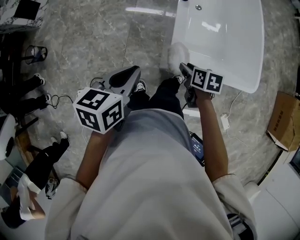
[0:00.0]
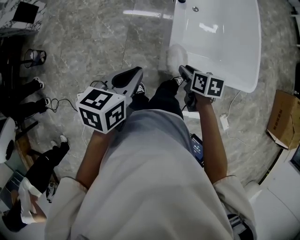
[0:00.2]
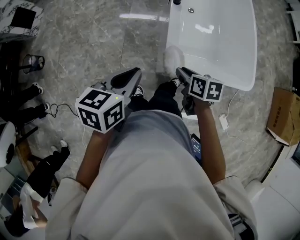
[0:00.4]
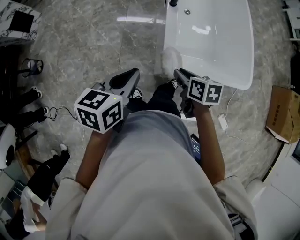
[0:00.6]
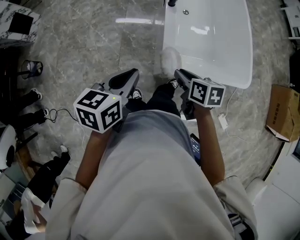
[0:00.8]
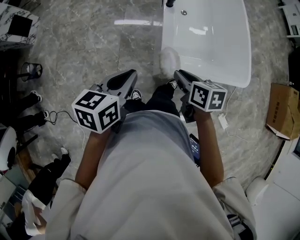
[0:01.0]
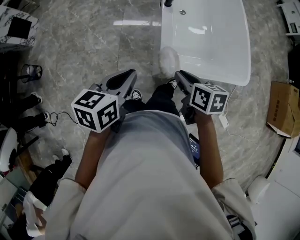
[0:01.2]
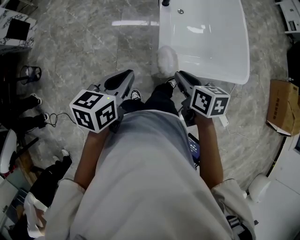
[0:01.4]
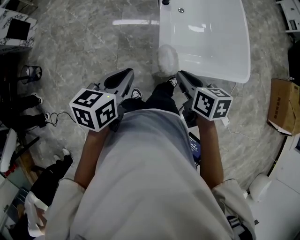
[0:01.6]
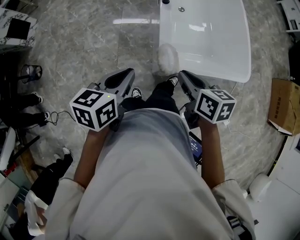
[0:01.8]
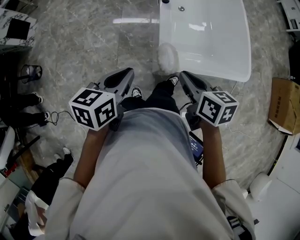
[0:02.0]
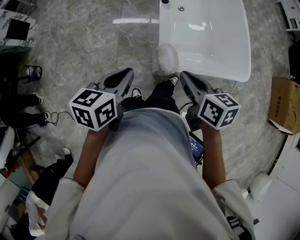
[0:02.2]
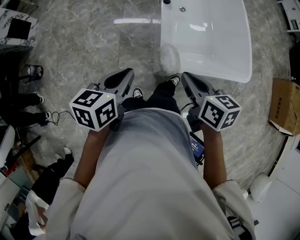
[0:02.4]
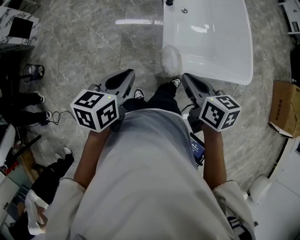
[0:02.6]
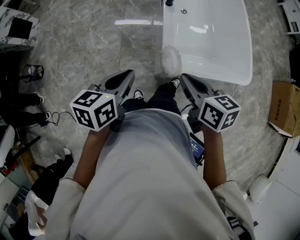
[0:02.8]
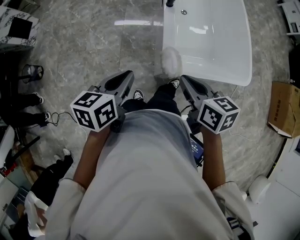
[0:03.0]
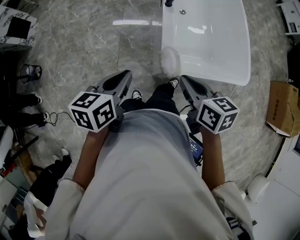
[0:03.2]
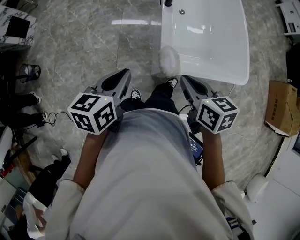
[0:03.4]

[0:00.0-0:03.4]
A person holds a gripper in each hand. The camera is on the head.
0:00.0 to 0:01.6: The right gripper moves upward, some 15 cm, and closes its fingers.
0:01.6 to 0:03.4: The grippers move only a little.

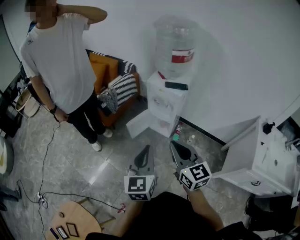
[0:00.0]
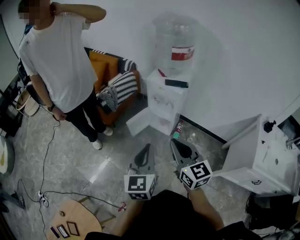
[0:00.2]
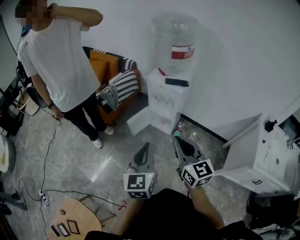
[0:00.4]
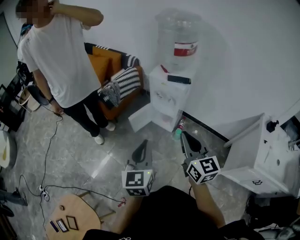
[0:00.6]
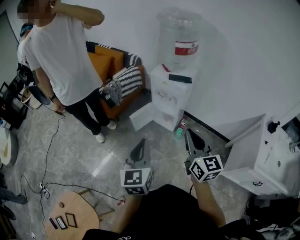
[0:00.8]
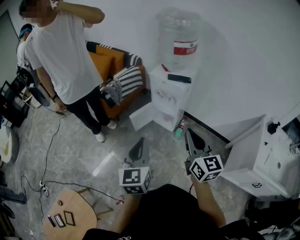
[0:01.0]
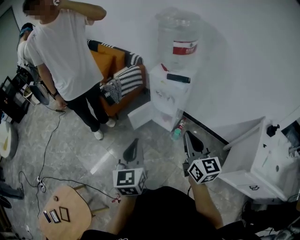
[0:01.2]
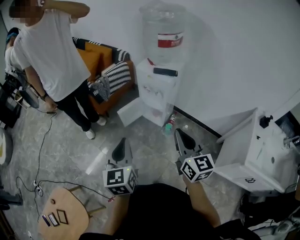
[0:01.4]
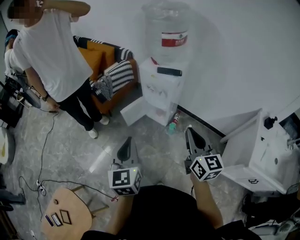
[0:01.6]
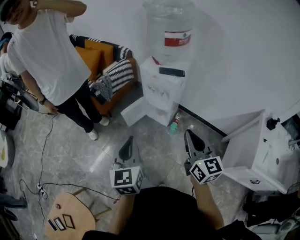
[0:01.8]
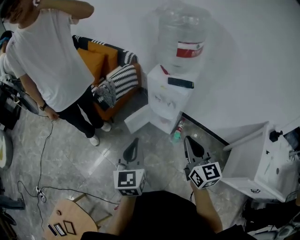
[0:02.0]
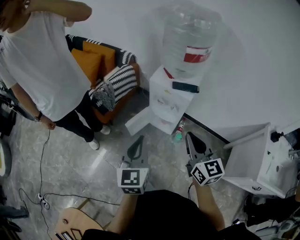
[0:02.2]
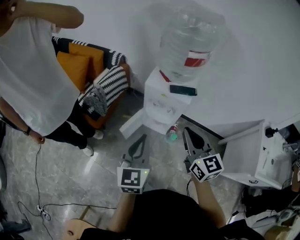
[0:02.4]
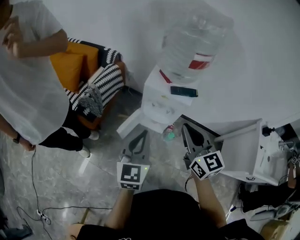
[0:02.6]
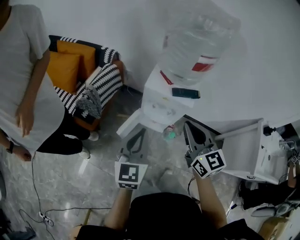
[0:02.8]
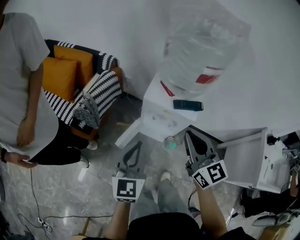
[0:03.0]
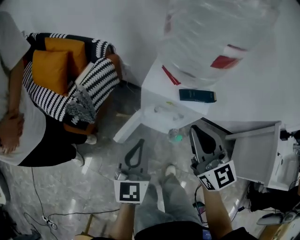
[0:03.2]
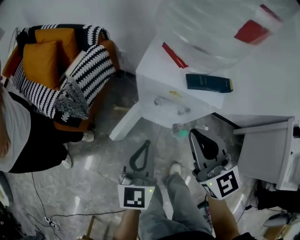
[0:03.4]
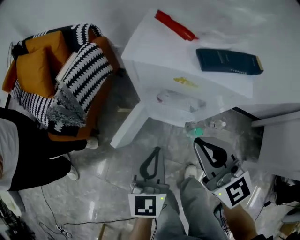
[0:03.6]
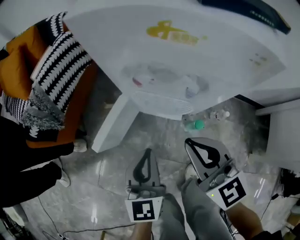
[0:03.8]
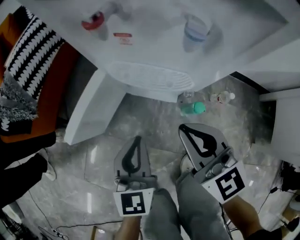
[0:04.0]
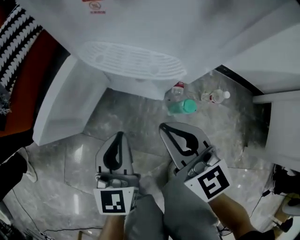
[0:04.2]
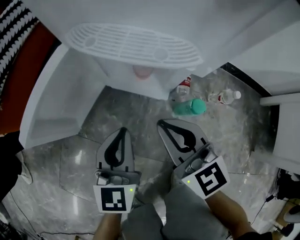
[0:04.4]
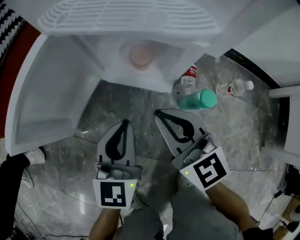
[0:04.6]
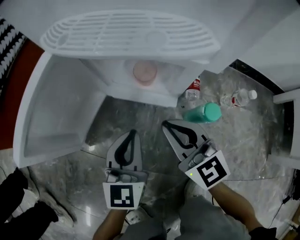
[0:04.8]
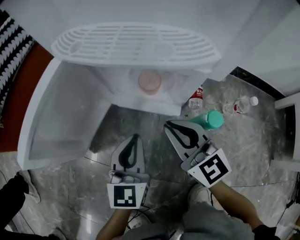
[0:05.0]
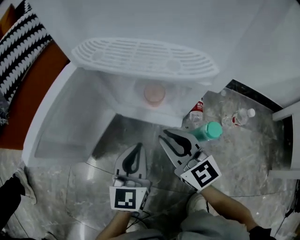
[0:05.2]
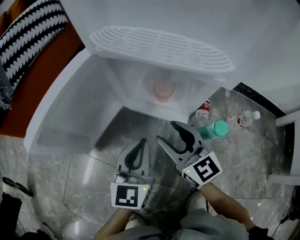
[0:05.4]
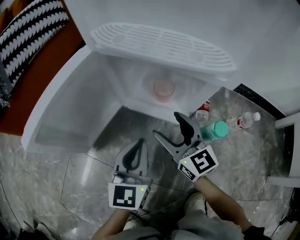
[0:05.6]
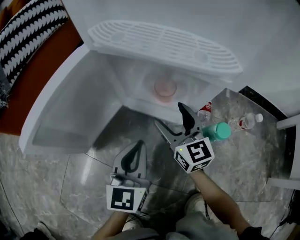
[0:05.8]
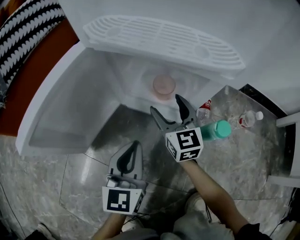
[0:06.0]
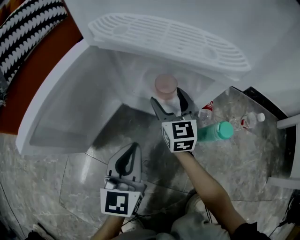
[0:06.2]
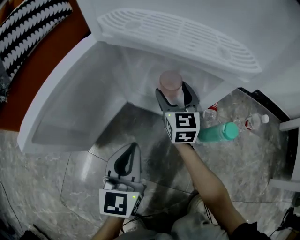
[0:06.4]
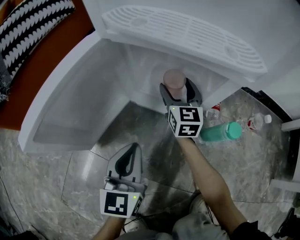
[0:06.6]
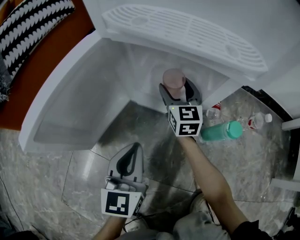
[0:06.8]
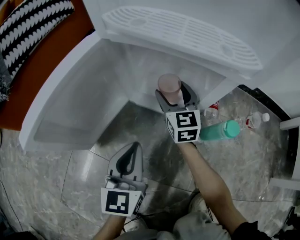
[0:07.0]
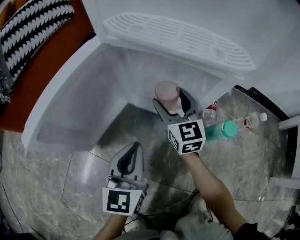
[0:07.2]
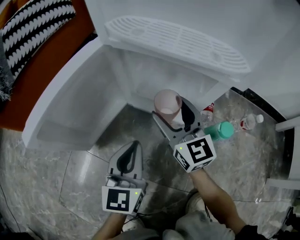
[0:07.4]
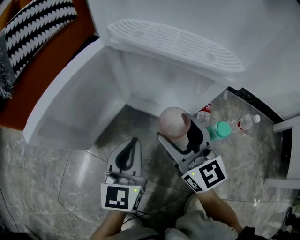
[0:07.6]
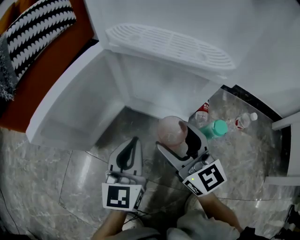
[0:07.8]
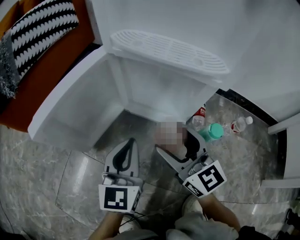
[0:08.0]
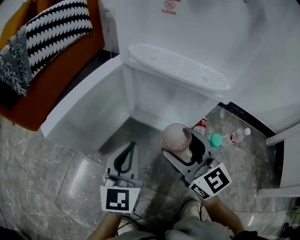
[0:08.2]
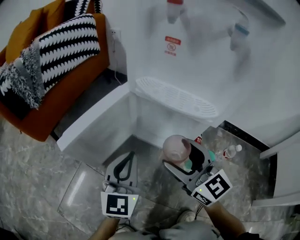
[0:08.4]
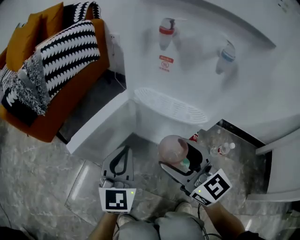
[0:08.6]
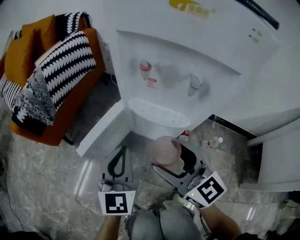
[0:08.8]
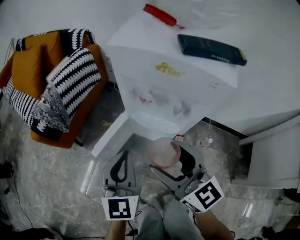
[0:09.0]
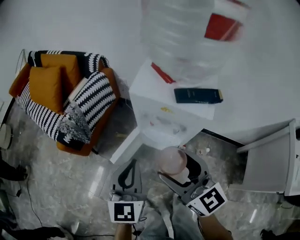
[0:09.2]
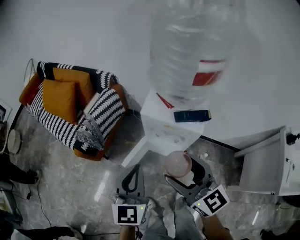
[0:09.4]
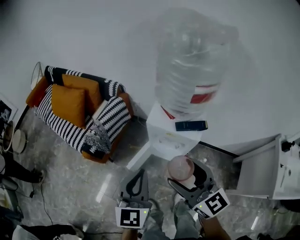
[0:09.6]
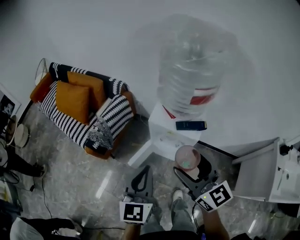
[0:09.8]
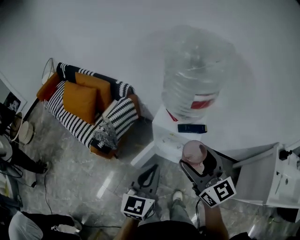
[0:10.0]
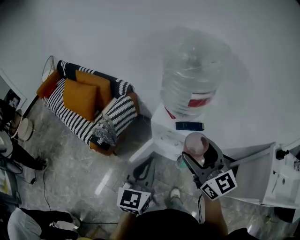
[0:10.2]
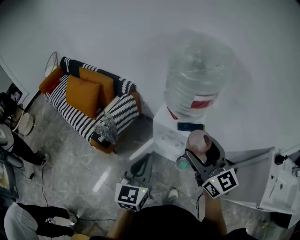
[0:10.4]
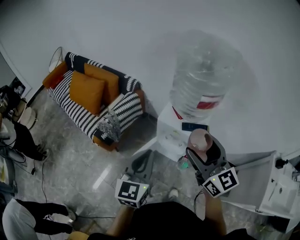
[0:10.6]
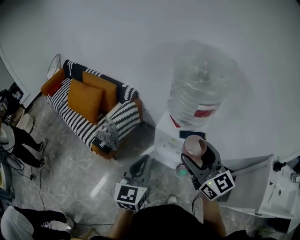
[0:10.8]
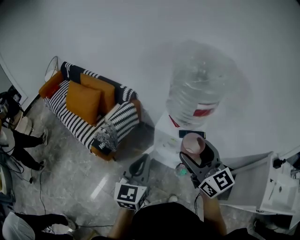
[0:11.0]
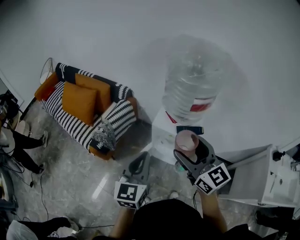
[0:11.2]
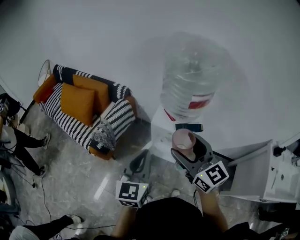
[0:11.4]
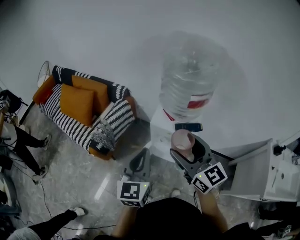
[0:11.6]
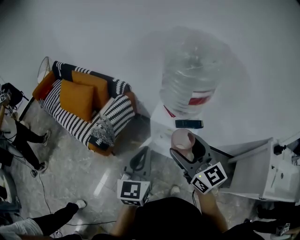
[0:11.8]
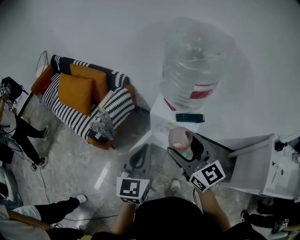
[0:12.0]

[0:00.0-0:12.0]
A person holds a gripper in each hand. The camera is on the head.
0:00.0 to 0:01.6: The right gripper shifts approximately 15 cm to the right.
0:01.6 to 0:03.0: The left gripper travels forward by some 35 cm, and changes its angle by about 30 degrees, while the right gripper travels forward and to the left by some 35 cm.
0:03.0 to 0:04.4: The grippers both shift downward by approximately 70 cm.
0:04.4 to 0:06.0: The left gripper is displaced downward by some 10 cm; the right gripper moves downward and forward, some 25 cm, and opens its fingers.
0:06.0 to 0:07.6: The right gripper travels backward and upward by approximately 15 cm.
0:07.6 to 0:09.0: Both grippers travel together upward, approximately 40 cm.
0:09.0 to 0:10.4: The two grippers go approximately 40 cm upward.
0:10.4 to 0:12.0: The right gripper travels to the left by some 5 cm.

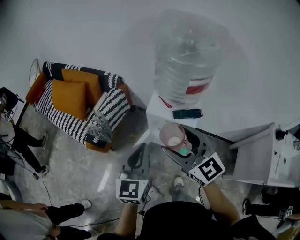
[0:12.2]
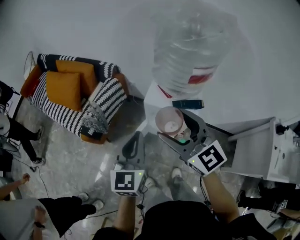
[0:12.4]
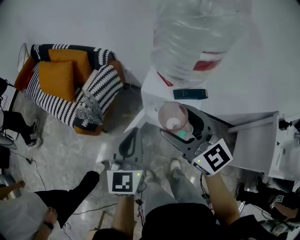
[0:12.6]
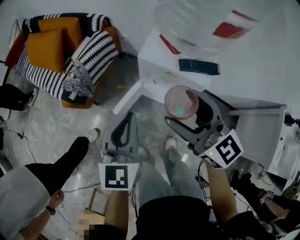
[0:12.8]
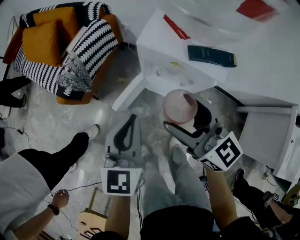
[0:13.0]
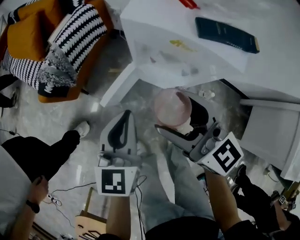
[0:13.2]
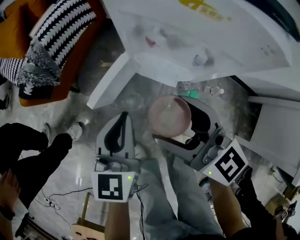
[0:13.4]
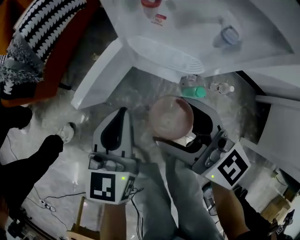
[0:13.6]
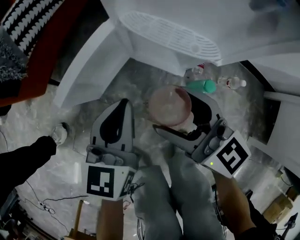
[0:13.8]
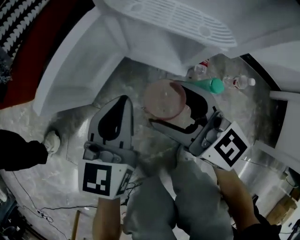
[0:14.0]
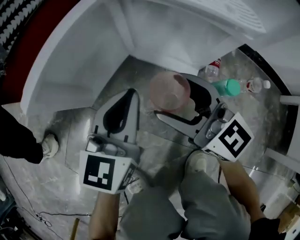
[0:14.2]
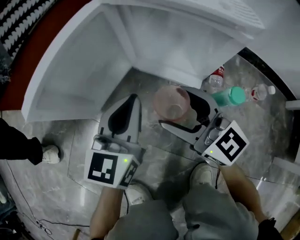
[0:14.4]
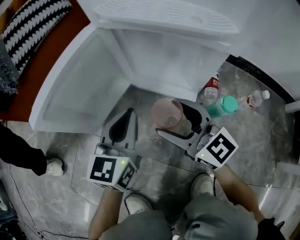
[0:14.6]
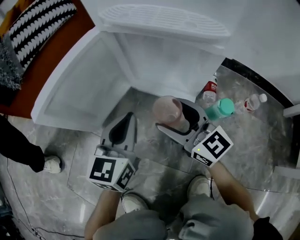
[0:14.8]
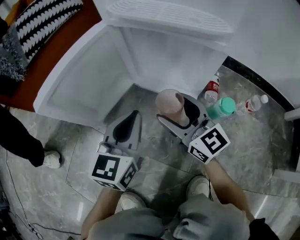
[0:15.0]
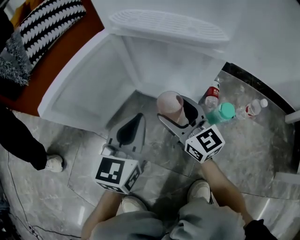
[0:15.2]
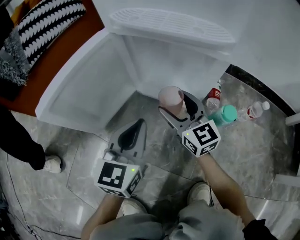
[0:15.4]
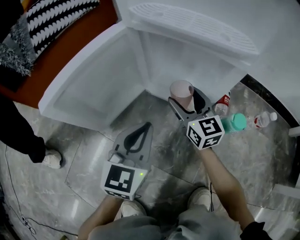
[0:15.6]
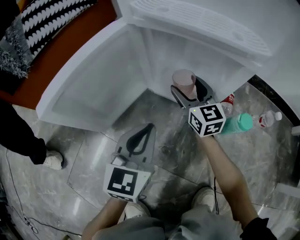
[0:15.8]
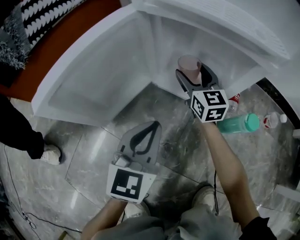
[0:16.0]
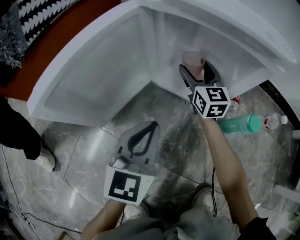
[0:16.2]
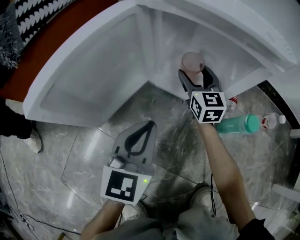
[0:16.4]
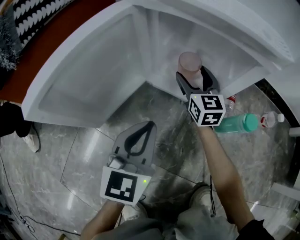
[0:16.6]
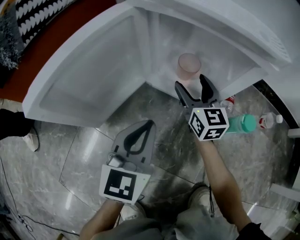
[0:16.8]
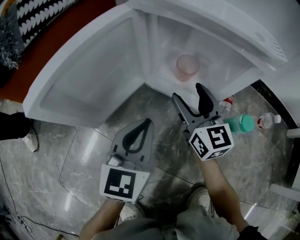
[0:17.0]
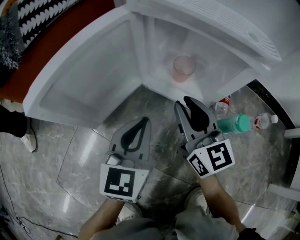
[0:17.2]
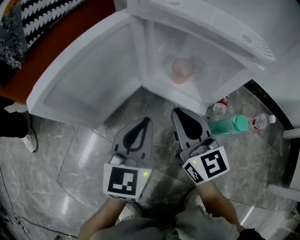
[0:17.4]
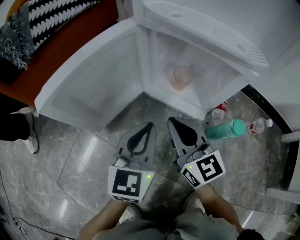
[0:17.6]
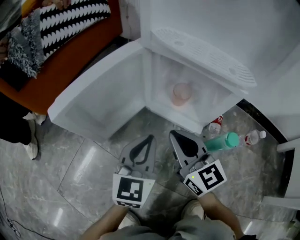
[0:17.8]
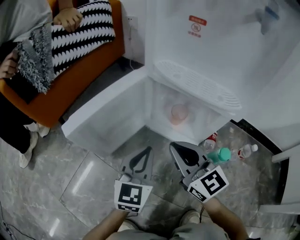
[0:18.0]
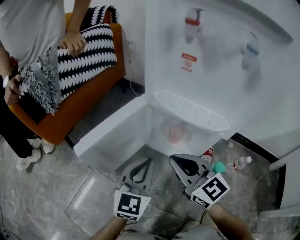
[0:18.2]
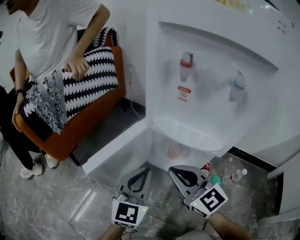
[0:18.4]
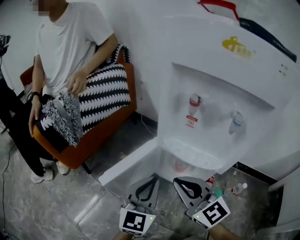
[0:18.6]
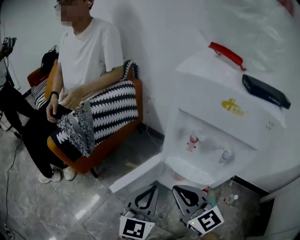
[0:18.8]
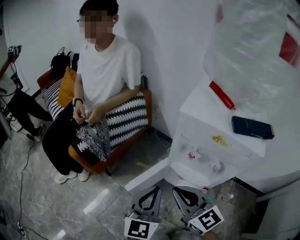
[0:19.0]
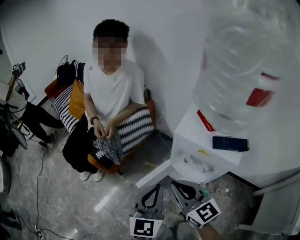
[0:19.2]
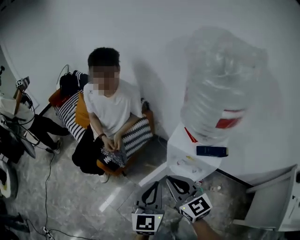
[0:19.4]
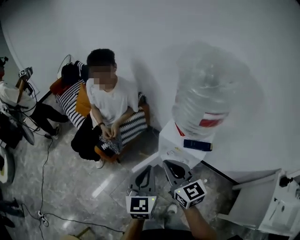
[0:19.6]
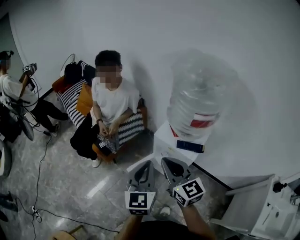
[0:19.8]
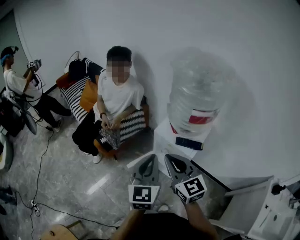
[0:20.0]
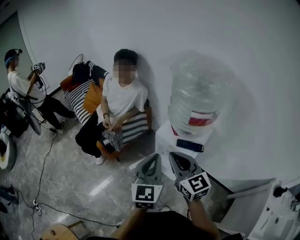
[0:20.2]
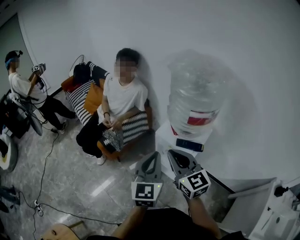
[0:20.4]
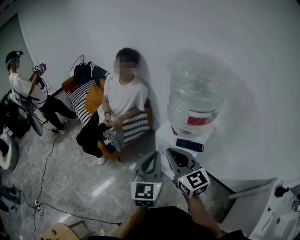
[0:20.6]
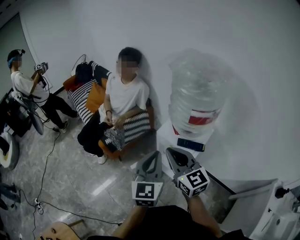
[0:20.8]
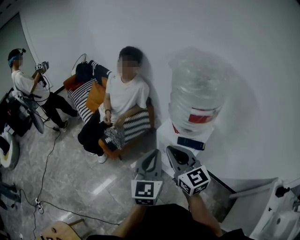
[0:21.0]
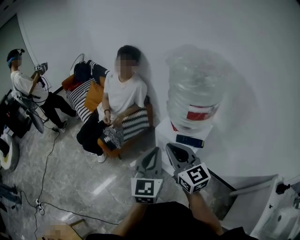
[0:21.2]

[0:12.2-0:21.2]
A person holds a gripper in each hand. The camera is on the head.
0:12.2 to 0:13.8: Both grippers travel together downward, approximately 60 cm.
0:13.8 to 0:15.2: The two grippers go approximately 20 cm downward.
0:15.2 to 0:16.6: The right gripper is displaced forward and downward by approximately 15 cm, and changes its angle by approximately 20 degrees. Meanwhile the left gripper ends up some 5 cm from where it was.
0:16.6 to 0:18.2: The right gripper goes approximately 25 cm upward, backward and to the left, swivels roughly 30 degrees, and closes; the left gripper moves upward, roughly 10 cm.
0:18.2 to 0:19.8: Both grippers travel together backward, some 35 cm. The left gripper tips its fingers upward by roughly 30 degrees. The right gripper tips its fingers upward by approximately 50 degrees.
0:19.8 to 0:21.2: The left gripper goes about 5 cm to the right.
